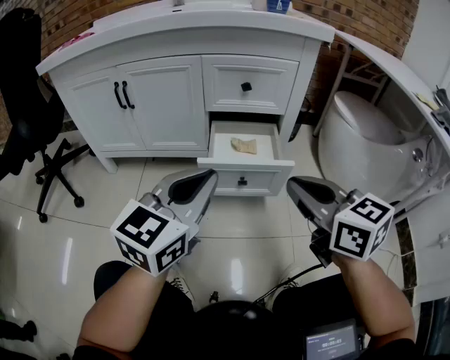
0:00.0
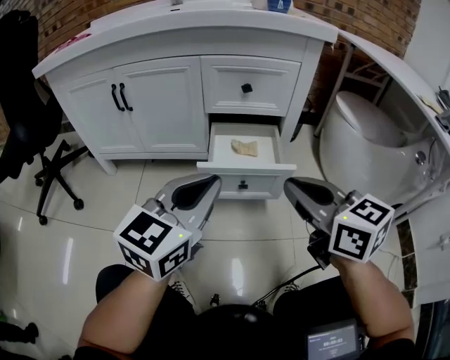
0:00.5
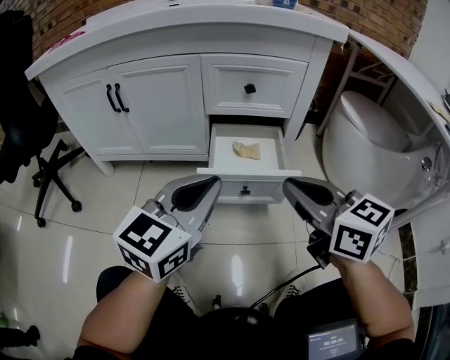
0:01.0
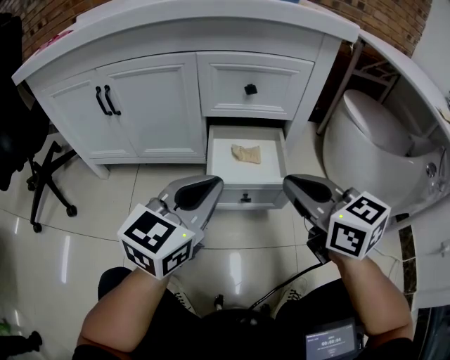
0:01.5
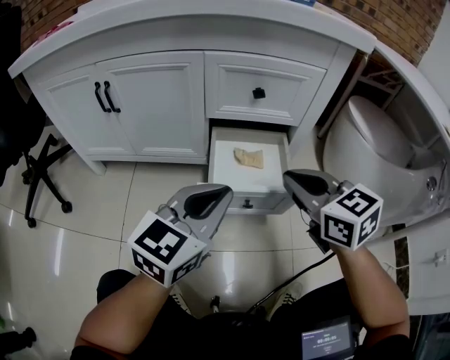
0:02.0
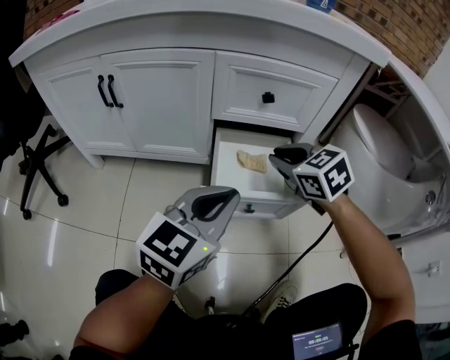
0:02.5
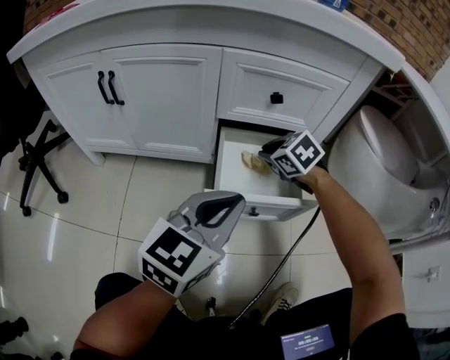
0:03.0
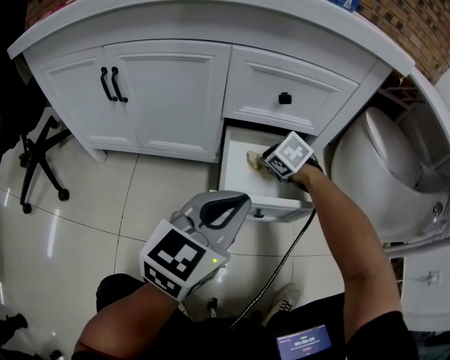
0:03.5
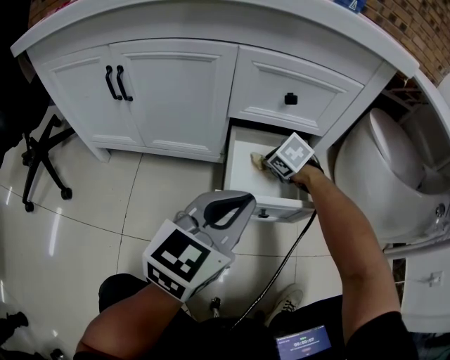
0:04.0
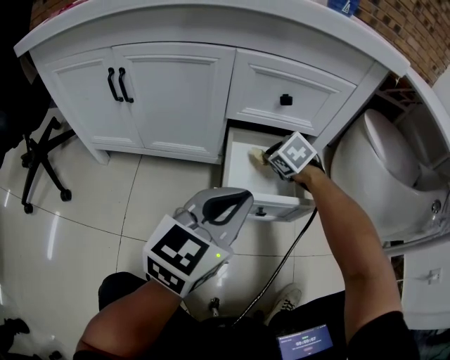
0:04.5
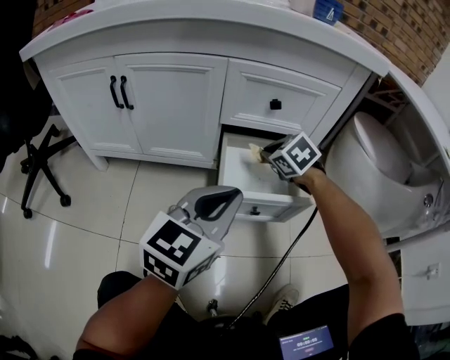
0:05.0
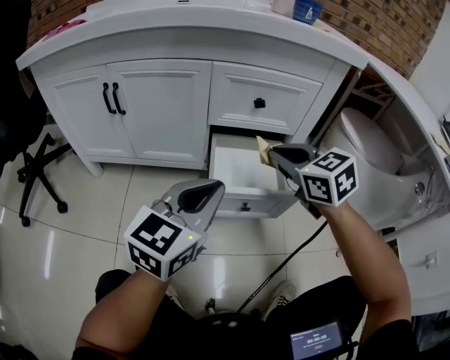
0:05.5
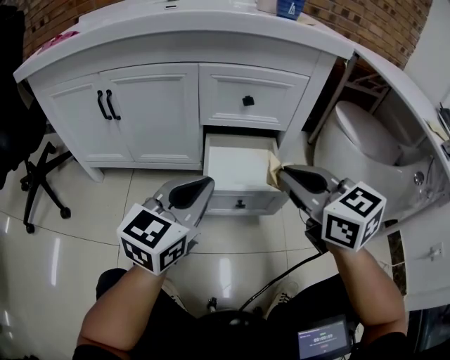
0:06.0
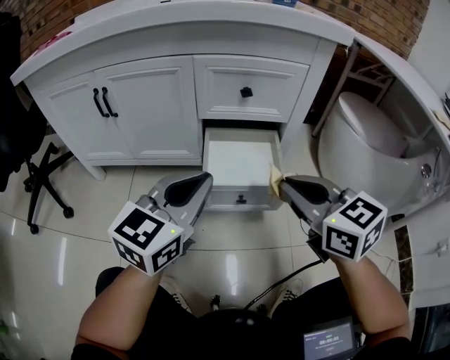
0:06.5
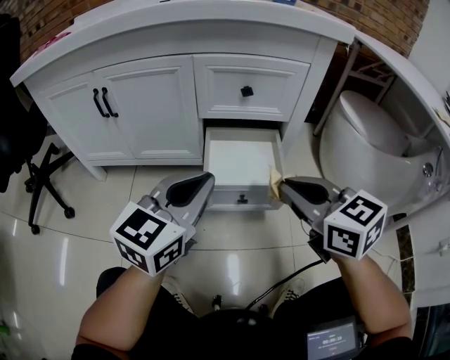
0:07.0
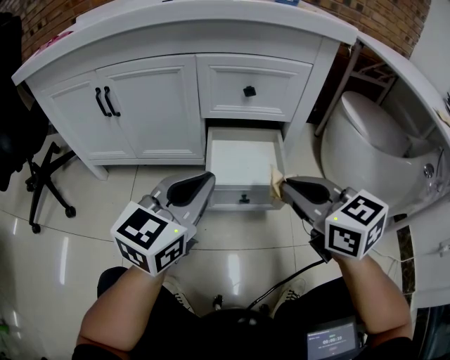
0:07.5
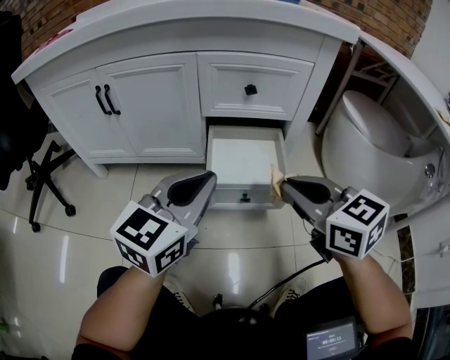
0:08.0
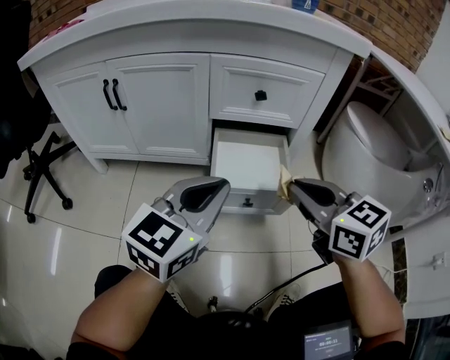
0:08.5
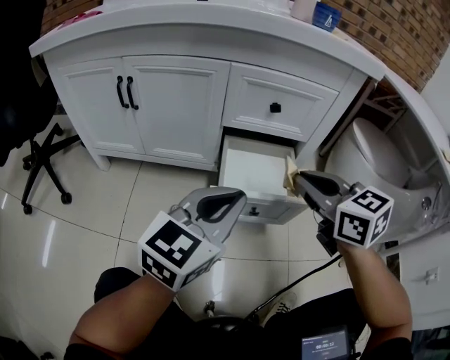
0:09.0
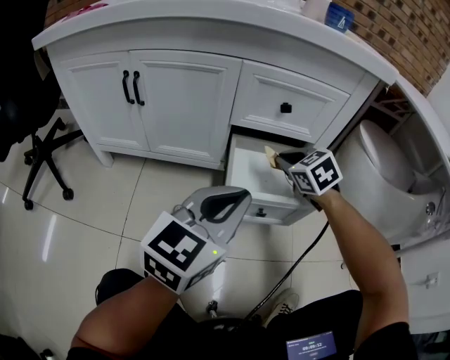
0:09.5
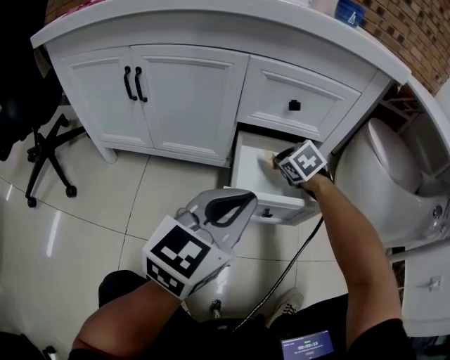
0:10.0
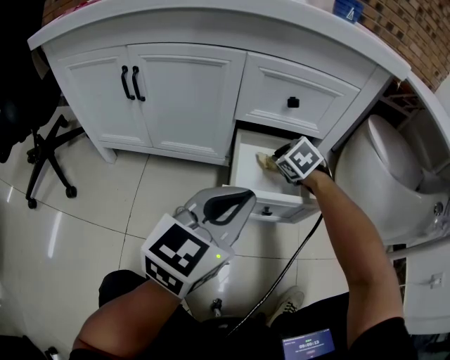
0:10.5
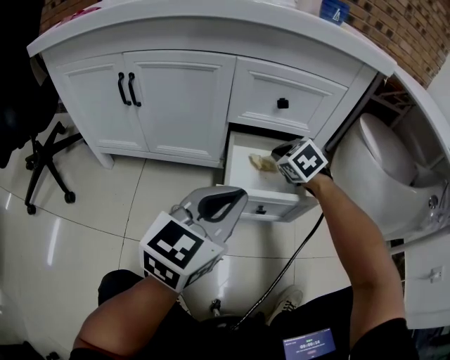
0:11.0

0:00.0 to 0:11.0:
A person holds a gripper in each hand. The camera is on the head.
0:00.0 to 0:02.0: The left gripper shifts approximately 10 cm forward and downward. Meanwhile the right gripper moves forward, some 15 cm.
0:02.0 to 0:03.5: The right gripper heads downward and forward, covering approximately 25 cm, and angles its fingers downward, by some 40 degrees.
0:03.5 to 0:05.5: The right gripper travels upward and backward by approximately 25 cm, and angles its fingers upward, by about 30 degrees.
0:05.5 to 0:07.5: The right gripper shifts approximately 10 cm backward.
0:07.5 to 0:09.0: The right gripper heads forward, covering some 5 cm.
0:09.0 to 0:11.0: The right gripper shifts some 20 cm downward and forward, and rotates approximately 40 degrees.

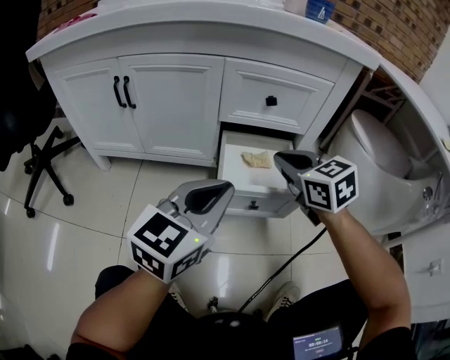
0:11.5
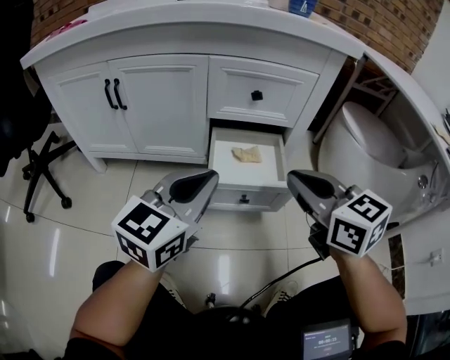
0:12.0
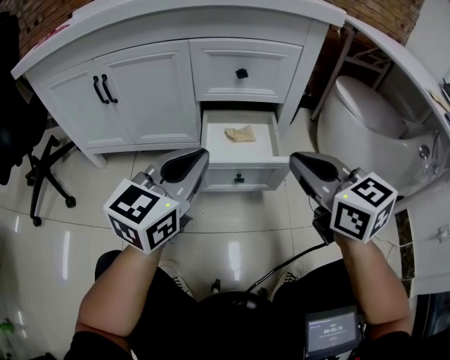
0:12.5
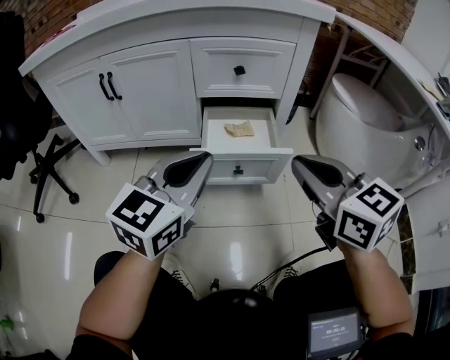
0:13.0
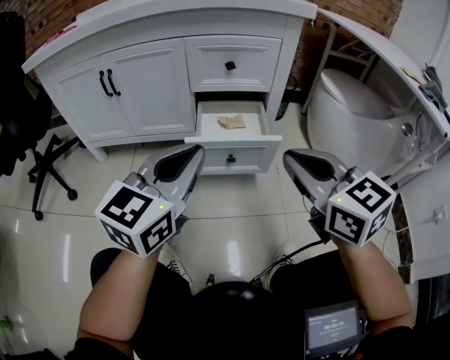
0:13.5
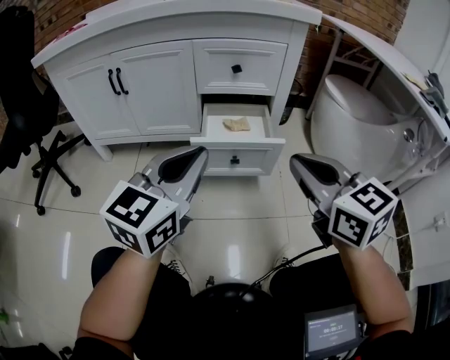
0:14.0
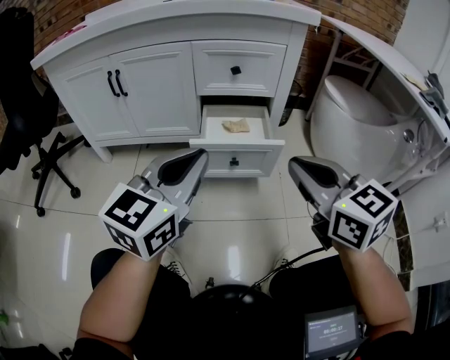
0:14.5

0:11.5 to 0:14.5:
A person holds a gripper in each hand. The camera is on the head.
0:11.5 to 0:13.0: The left gripper shifts by about 5 cm, while the right gripper travels backward, upward and to the right by roughly 20 cm.
0:13.0 to 0:14.5: Both grippers travel together backward, about 5 cm.

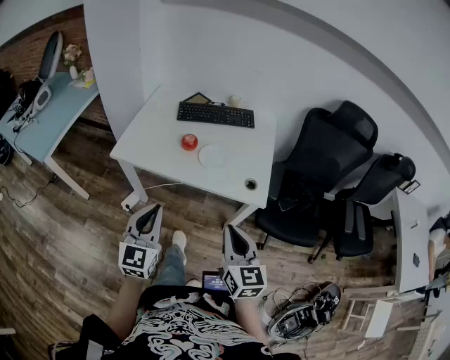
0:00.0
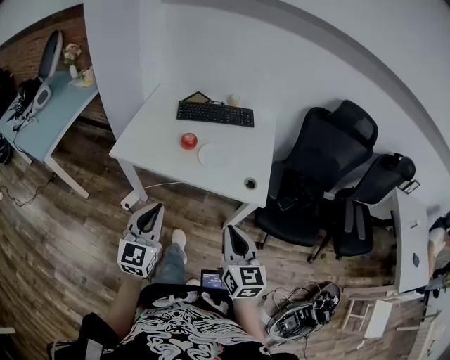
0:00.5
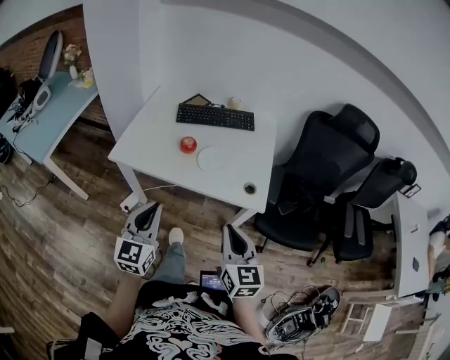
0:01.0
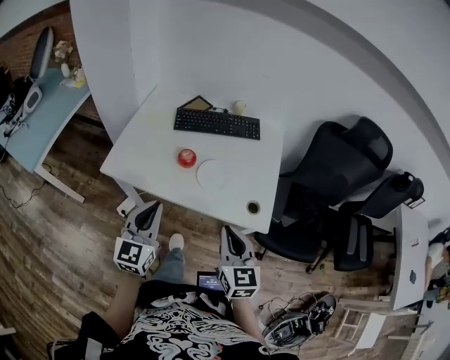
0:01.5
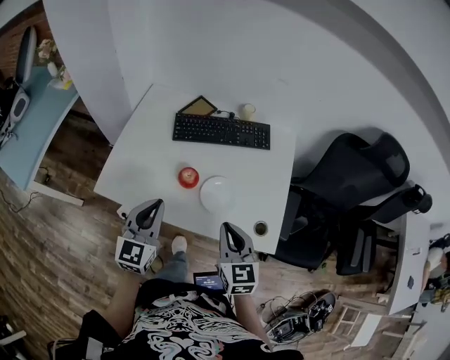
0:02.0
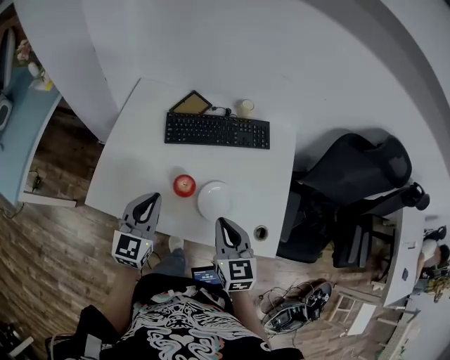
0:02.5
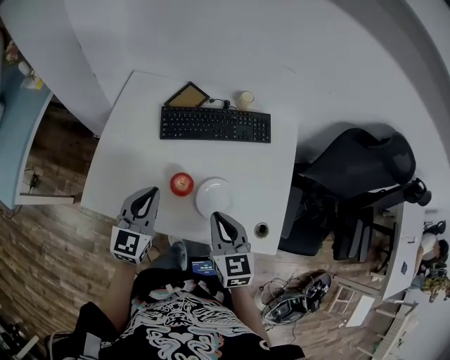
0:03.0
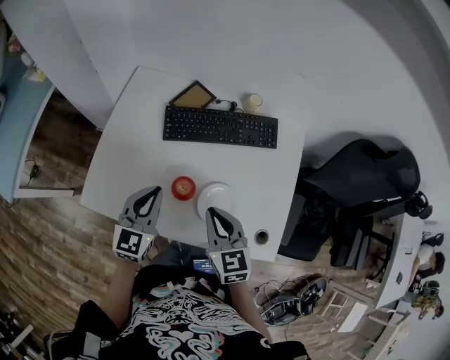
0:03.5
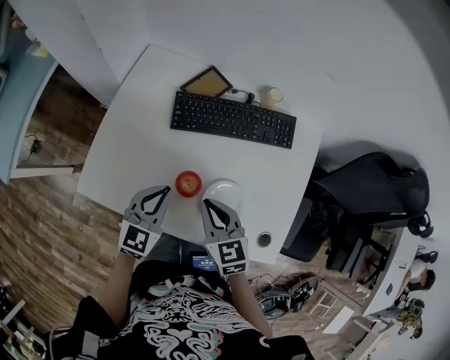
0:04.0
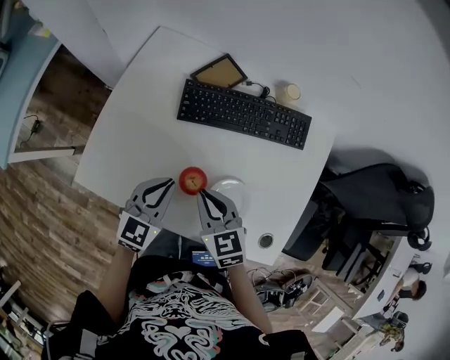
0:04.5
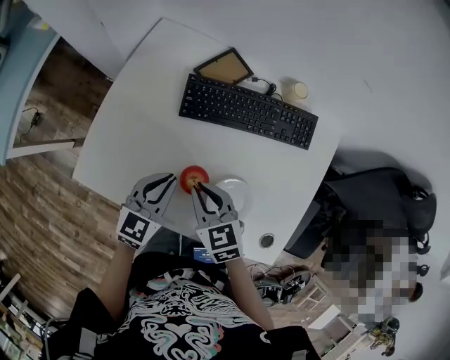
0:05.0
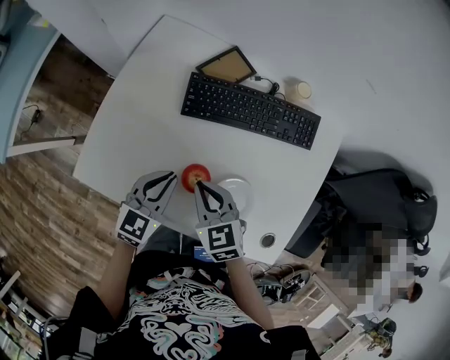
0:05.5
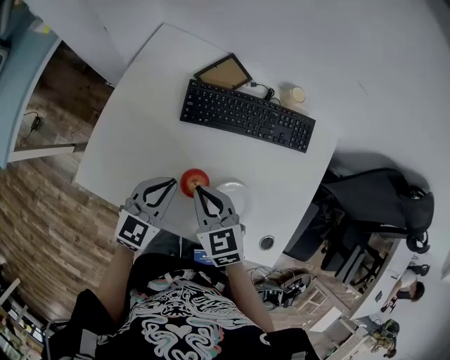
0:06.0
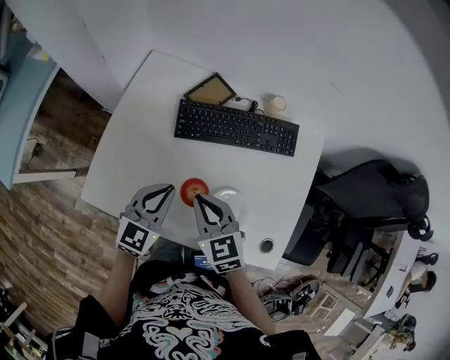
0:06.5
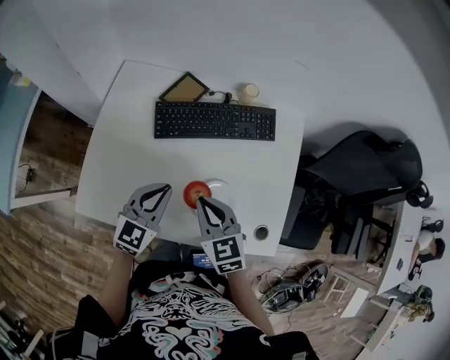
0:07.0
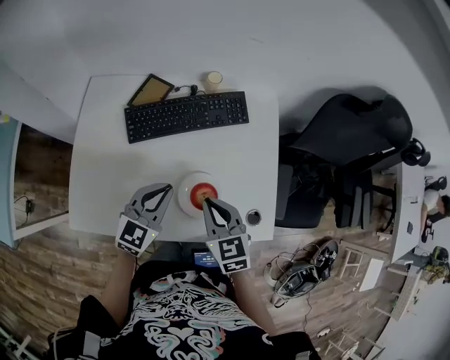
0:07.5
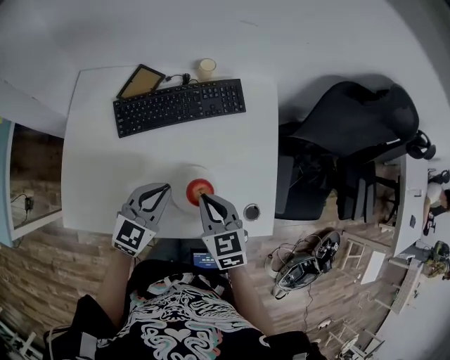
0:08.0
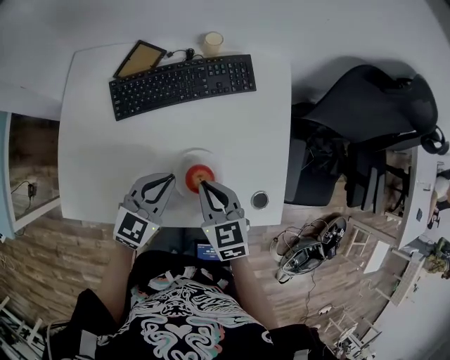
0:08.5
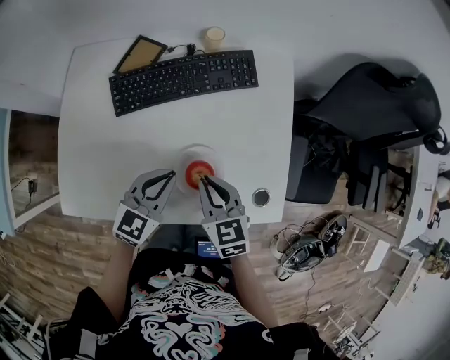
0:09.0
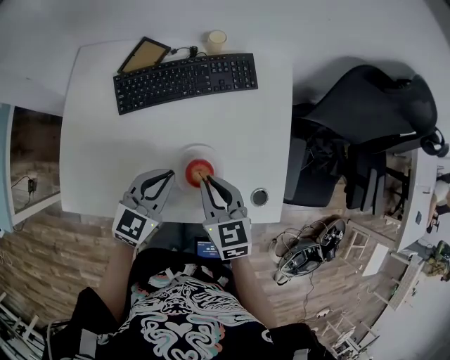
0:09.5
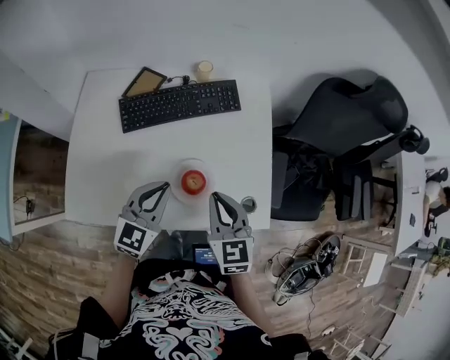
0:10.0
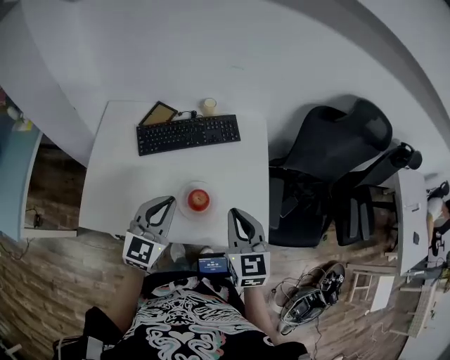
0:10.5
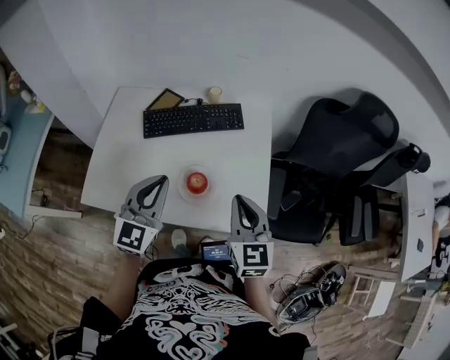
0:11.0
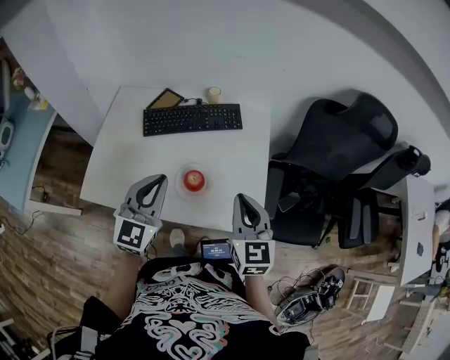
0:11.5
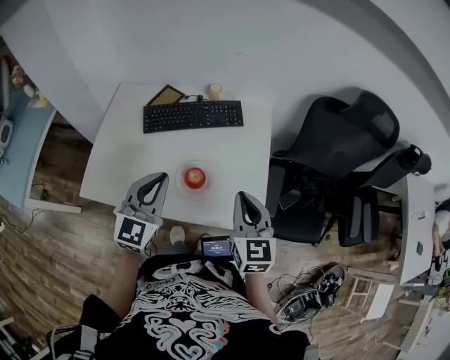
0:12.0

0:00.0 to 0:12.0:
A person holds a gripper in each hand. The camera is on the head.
0:00.0 to 0:02.0: The grippers both shift forward by roughly 30 cm.
0:02.0 to 0:04.0: The left gripper heads forward and downward, covering approximately 20 cm. Meanwhile the right gripper moves forward, to the left and downward, approximately 20 cm.
0:04.0 to 0:06.0: The right gripper shifts by roughly 5 cm.
0:06.0 to 0:08.0: The grippers both shift to the right by roughly 15 cm. The right gripper swivels some 30 degrees. Meanwhile the left gripper swivels roughly 20 degrees.
0:08.0 to 0:10.0: The right gripper is displaced upward by roughly 5 cm. The left gripper changes place by approximately 5 cm.
0:10.0 to 0:12.0: The left gripper moves upward and backward, about 15 cm, while the right gripper is displaced to the right and upward by approximately 15 cm.

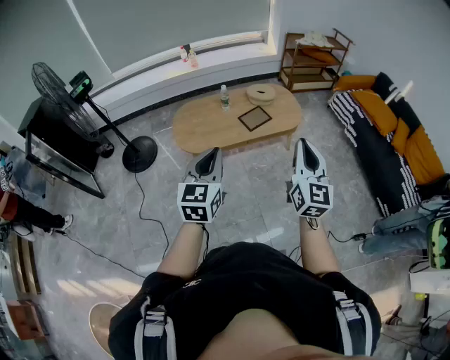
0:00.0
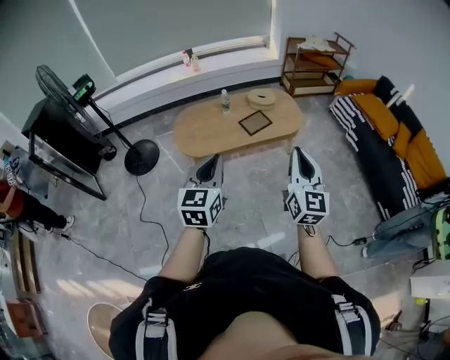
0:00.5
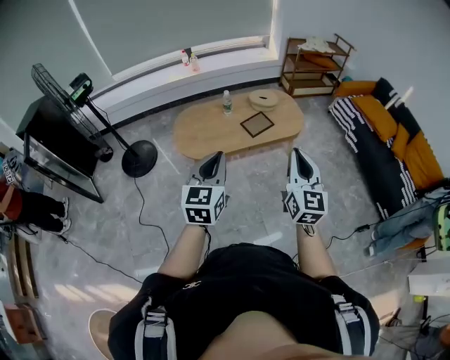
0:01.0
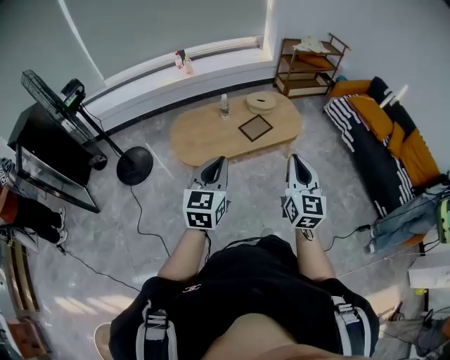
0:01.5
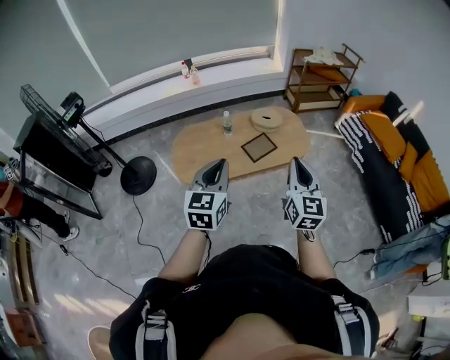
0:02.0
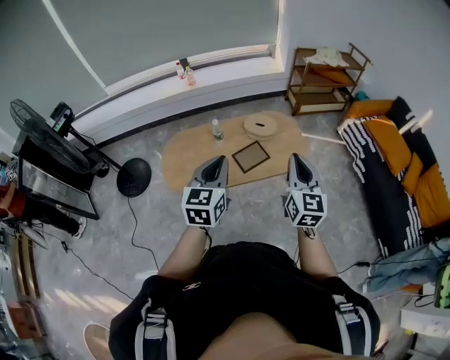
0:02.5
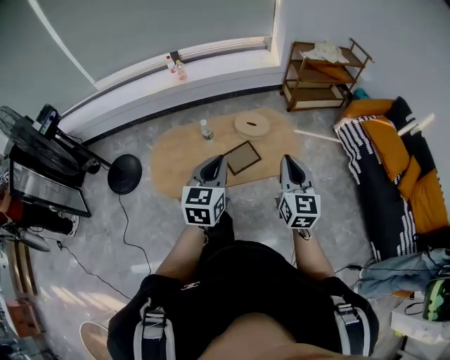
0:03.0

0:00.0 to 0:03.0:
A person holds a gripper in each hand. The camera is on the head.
0:00.0 to 0:01.5: The right gripper heads to the left, covering some 10 cm. Meanwhile the left gripper goes about 10 cm to the left and forward.
0:01.5 to 0:03.0: The pair of grippers is taken forward and to the right, approximately 50 cm.
